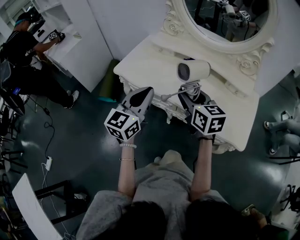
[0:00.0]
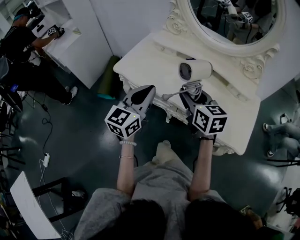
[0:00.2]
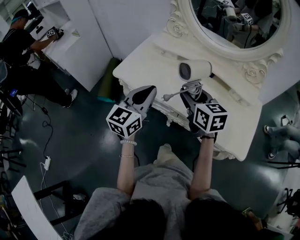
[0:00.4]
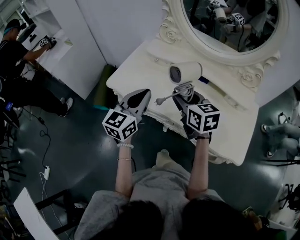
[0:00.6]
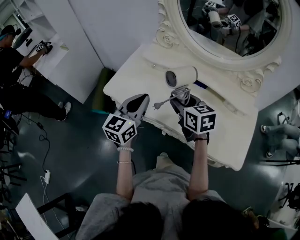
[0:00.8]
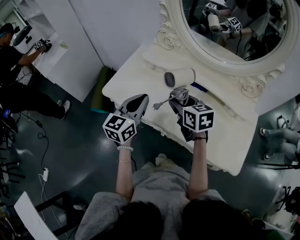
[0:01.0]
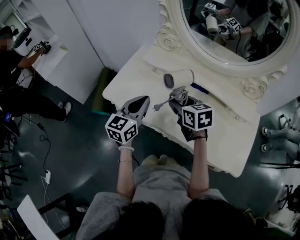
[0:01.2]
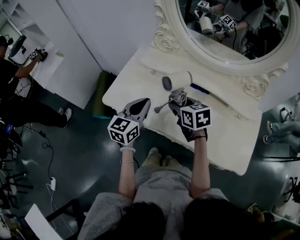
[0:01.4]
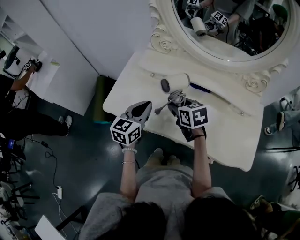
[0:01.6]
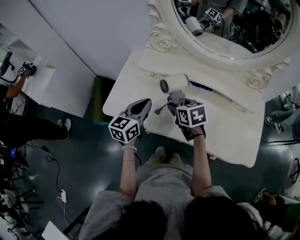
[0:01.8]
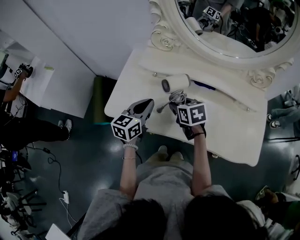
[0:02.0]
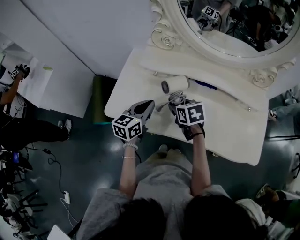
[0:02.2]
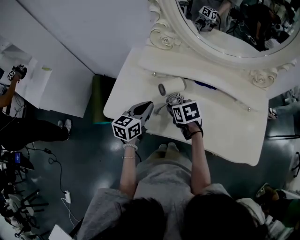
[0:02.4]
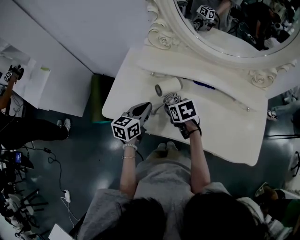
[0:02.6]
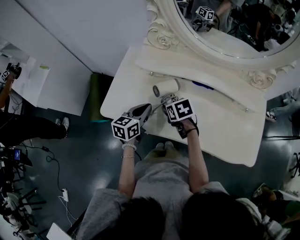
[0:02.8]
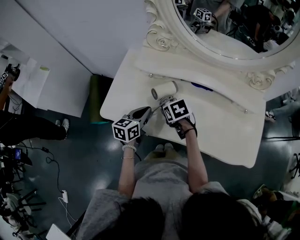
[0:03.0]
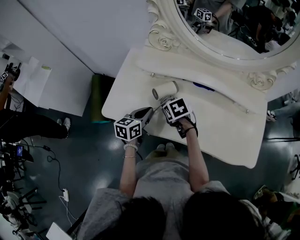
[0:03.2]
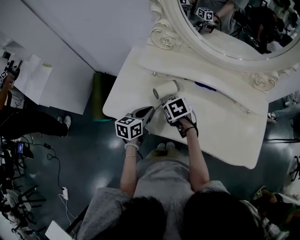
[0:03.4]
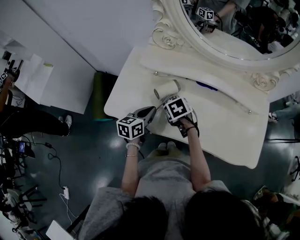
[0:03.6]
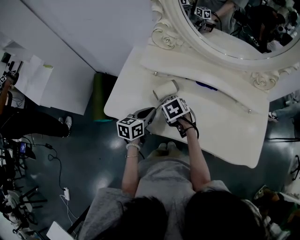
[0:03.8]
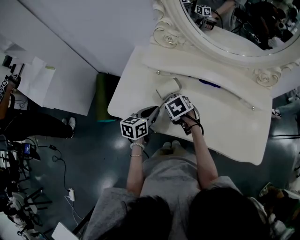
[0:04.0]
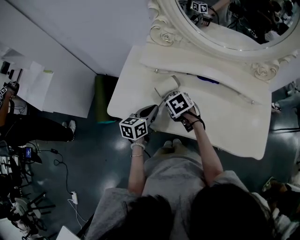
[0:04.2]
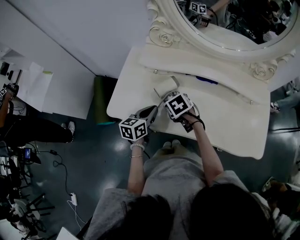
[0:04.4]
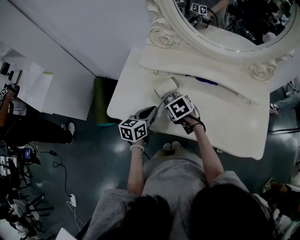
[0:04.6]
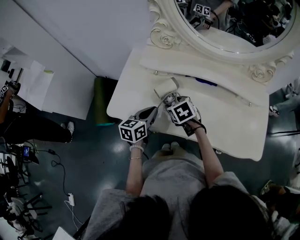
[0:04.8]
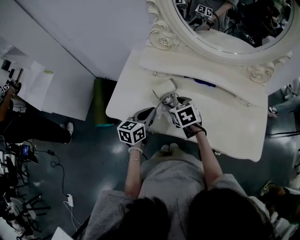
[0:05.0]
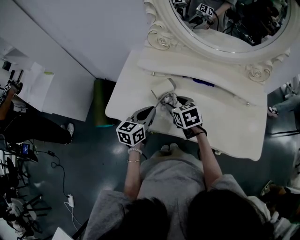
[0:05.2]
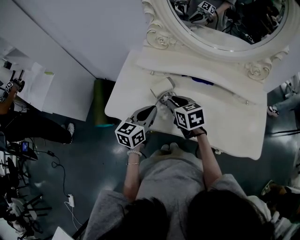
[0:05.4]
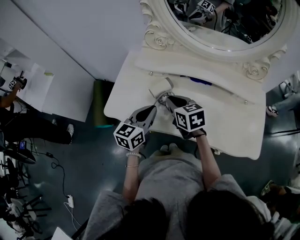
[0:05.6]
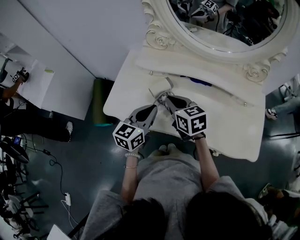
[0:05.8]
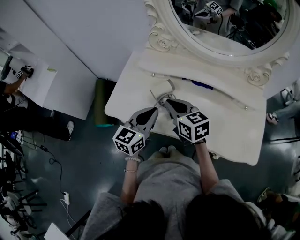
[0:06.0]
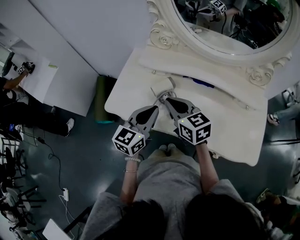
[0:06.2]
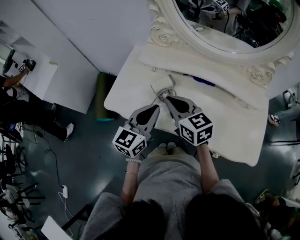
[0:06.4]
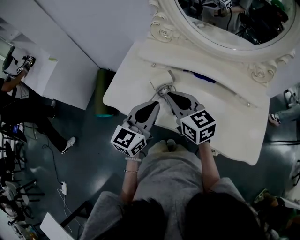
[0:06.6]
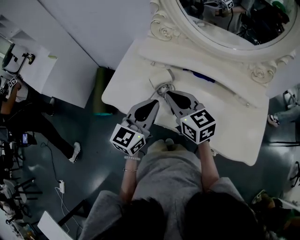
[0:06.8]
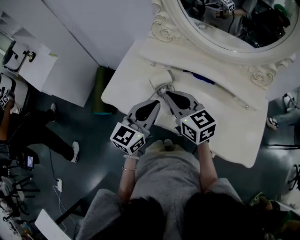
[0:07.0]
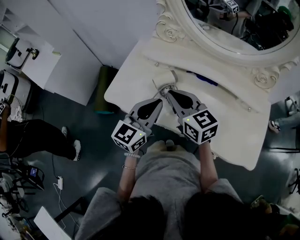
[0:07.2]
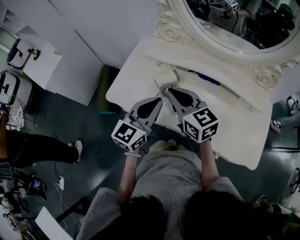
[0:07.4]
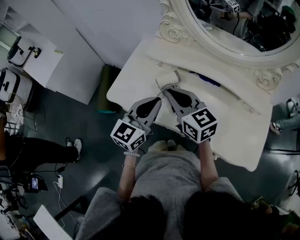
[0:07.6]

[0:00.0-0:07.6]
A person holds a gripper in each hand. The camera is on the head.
0:00.0 to 0:01.6: Both grippers move forward and downward, about 25 cm. The right gripper turns by about 20 degrees.
0:01.6 to 0:03.0: The two grippers go roughly 10 cm downward. The right gripper changes its angle by about 20 degrees.
0:03.0 to 0:04.6: The grippers move only a little.
0:04.6 to 0:06.0: The grippers both shift upward by roughly 15 cm. The left gripper rotates some 20 degrees, while the right gripper tips its fingers upward by some 40 degrees, and closes up.
0:06.0 to 0:07.6: The grippers move only a little.

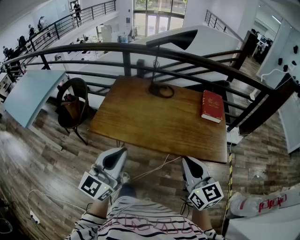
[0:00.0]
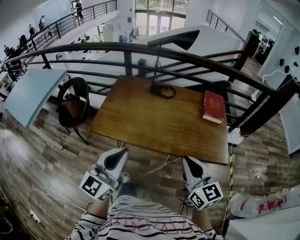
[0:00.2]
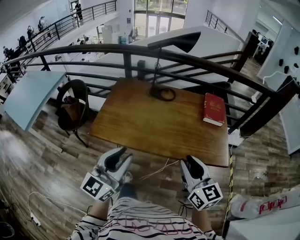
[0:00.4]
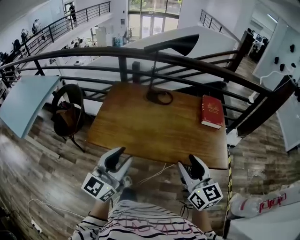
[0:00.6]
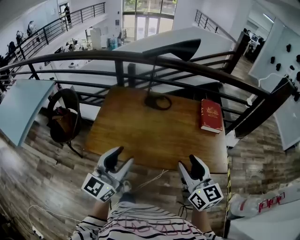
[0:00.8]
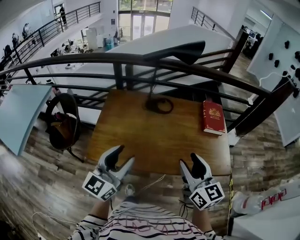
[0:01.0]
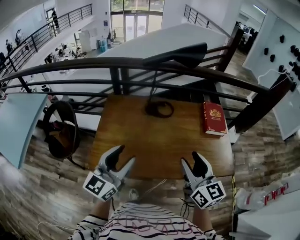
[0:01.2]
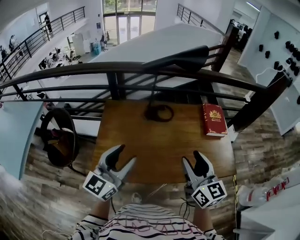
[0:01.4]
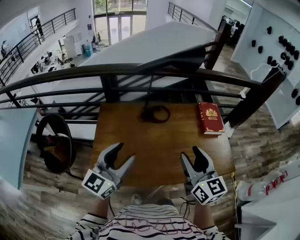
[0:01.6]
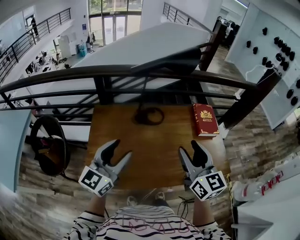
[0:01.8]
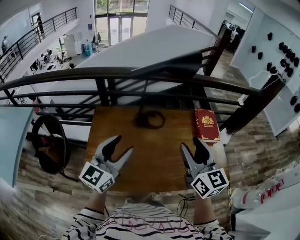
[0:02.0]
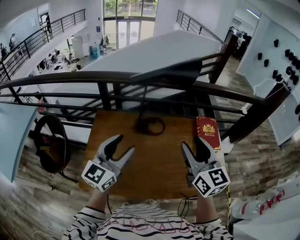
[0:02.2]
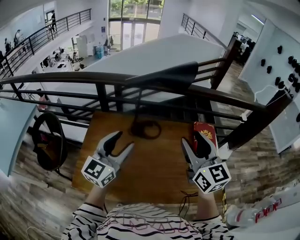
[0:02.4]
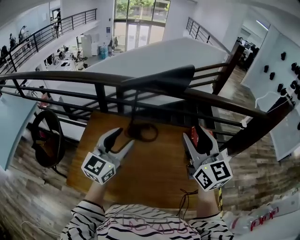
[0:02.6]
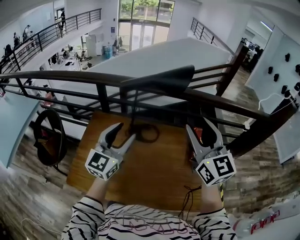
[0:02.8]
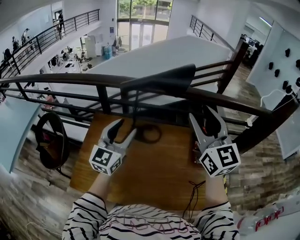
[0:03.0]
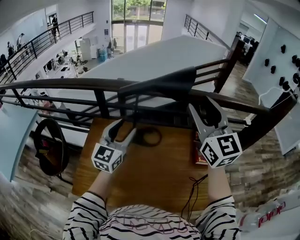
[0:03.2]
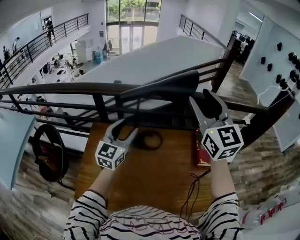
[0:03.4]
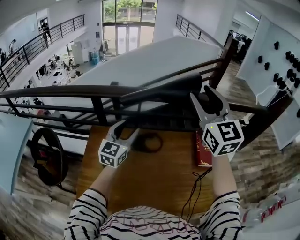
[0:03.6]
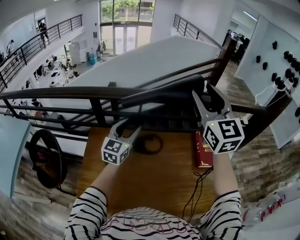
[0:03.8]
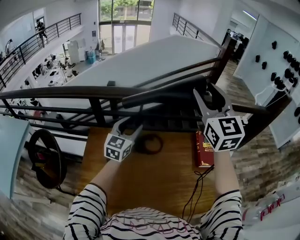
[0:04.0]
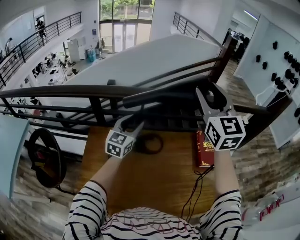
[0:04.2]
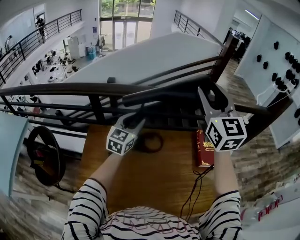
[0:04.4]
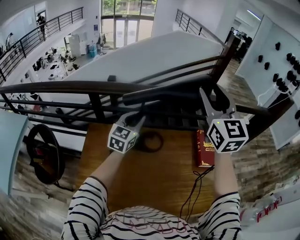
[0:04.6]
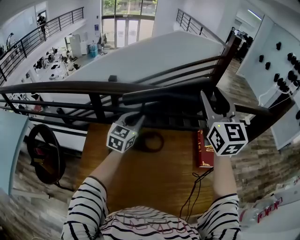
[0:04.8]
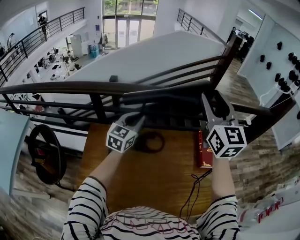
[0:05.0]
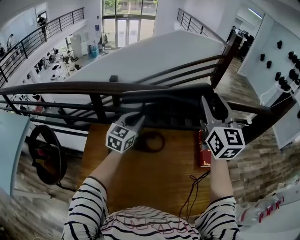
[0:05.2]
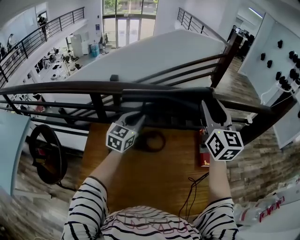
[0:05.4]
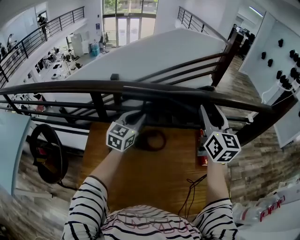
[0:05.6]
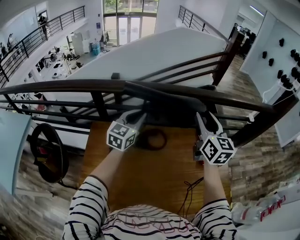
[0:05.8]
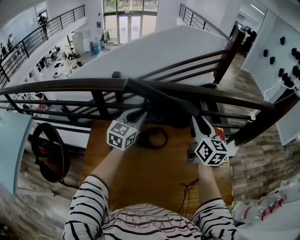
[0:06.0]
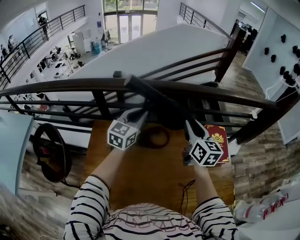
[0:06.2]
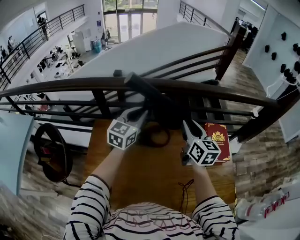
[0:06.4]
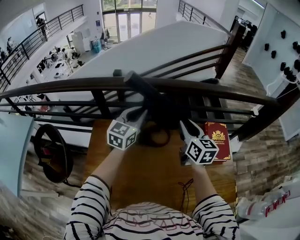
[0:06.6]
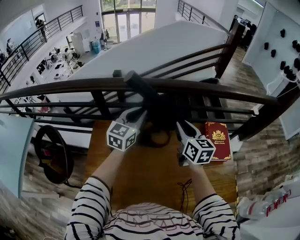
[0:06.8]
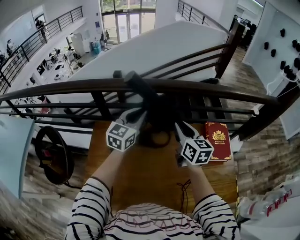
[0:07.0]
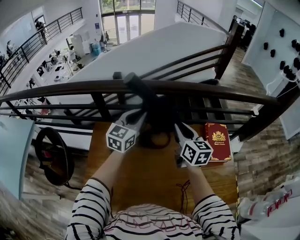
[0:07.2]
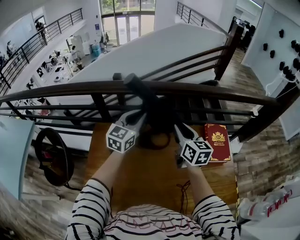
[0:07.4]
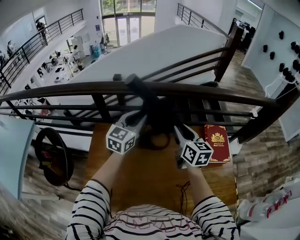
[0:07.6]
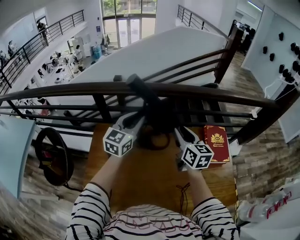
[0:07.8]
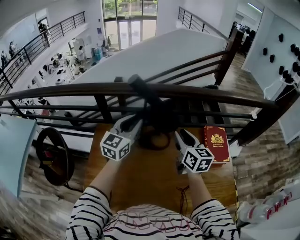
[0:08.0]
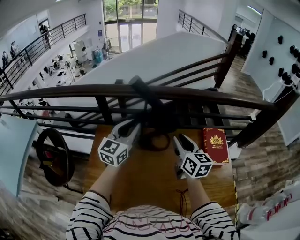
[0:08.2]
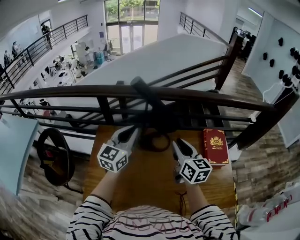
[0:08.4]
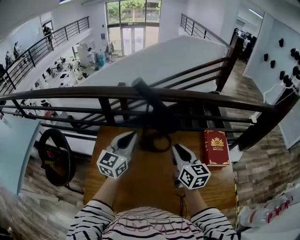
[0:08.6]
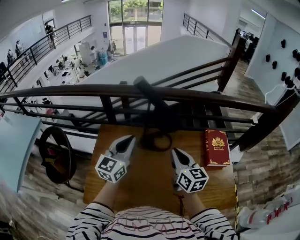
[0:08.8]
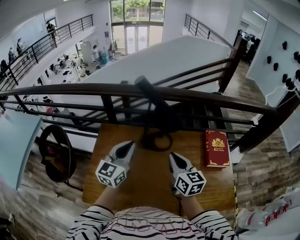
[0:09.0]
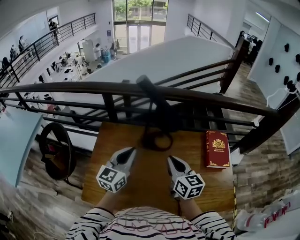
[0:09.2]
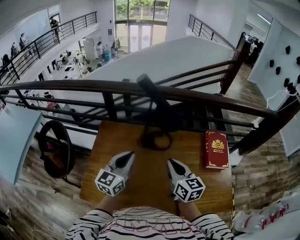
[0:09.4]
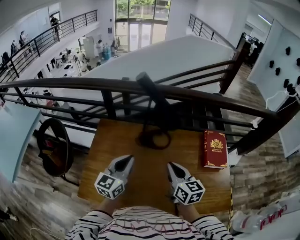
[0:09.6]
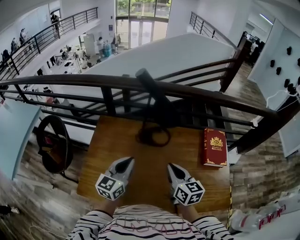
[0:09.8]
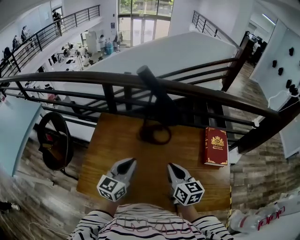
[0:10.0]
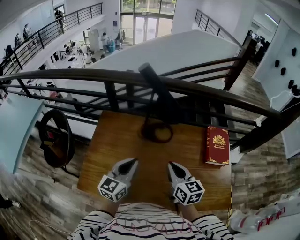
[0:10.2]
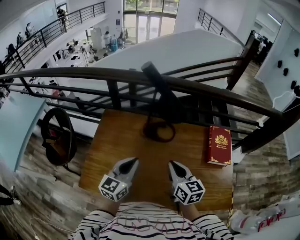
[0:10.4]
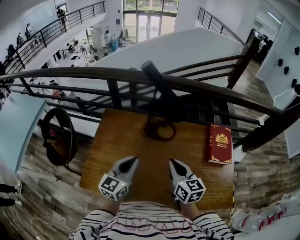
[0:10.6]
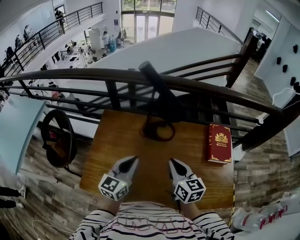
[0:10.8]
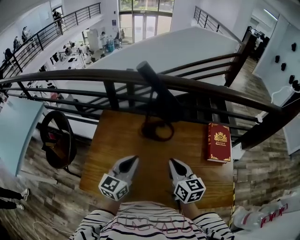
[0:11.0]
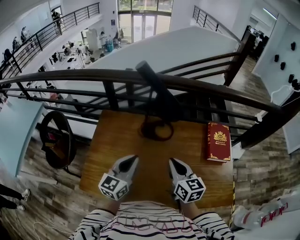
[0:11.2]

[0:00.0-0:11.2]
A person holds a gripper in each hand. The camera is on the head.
0:00.0 to 0:01.6: Both grippers move forward and to the left, approximately 35 cm. The right gripper opens its fingers, while the left gripper opens its fingers.
0:01.6 to 0:03.2: The left gripper travels forward and to the right by about 25 cm, while the right gripper moves forward and upward, some 30 cm, and rotates approximately 30 degrees.
0:03.2 to 0:04.8: Both grippers travel together forward, approximately 15 cm. The left gripper closes.
0:04.8 to 0:06.4: The right gripper is displaced downward by approximately 25 cm, and changes its angle by some 30 degrees.
0:06.4 to 0:08.0: The right gripper moves about 5 cm. Meanwhile the left gripper heads backward, covering approximately 5 cm.
0:08.0 to 0:09.6: The right gripper travels backward by roughly 15 cm, and closes; the left gripper goes some 20 cm backward and downward.
0:09.6 to 0:11.2: The grippers stay close to where they were, moving slightly.

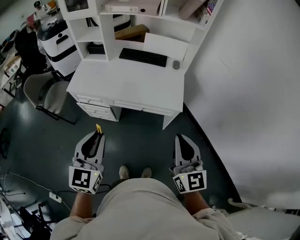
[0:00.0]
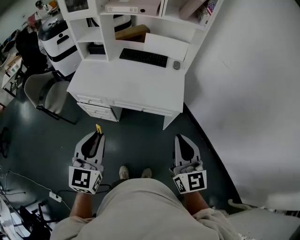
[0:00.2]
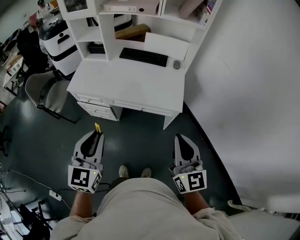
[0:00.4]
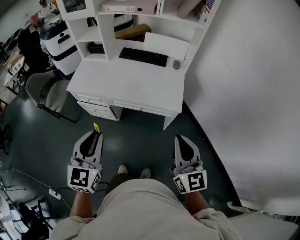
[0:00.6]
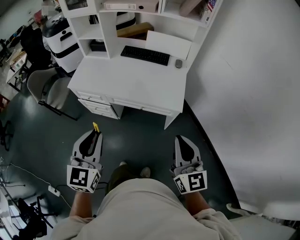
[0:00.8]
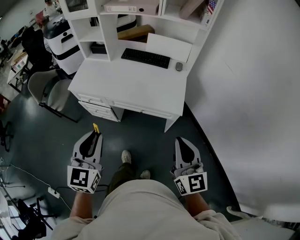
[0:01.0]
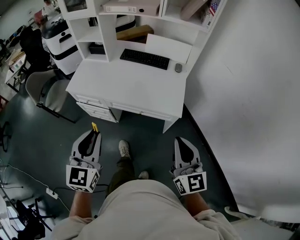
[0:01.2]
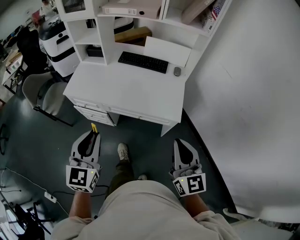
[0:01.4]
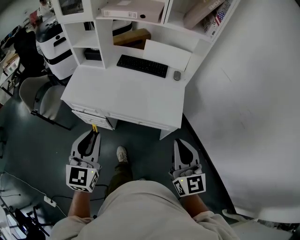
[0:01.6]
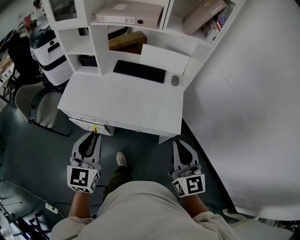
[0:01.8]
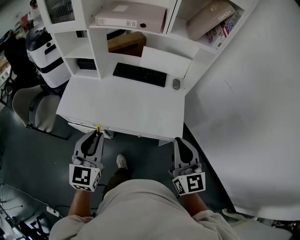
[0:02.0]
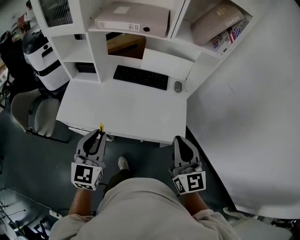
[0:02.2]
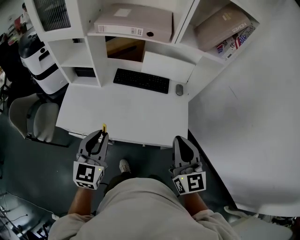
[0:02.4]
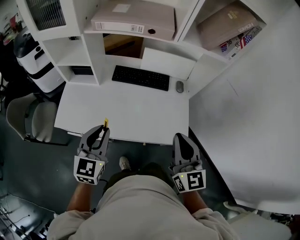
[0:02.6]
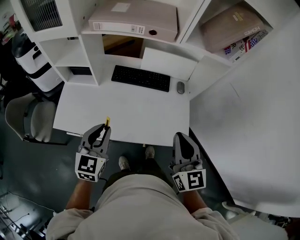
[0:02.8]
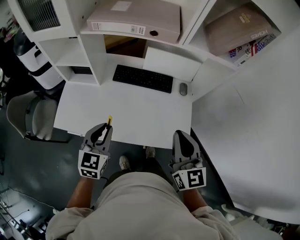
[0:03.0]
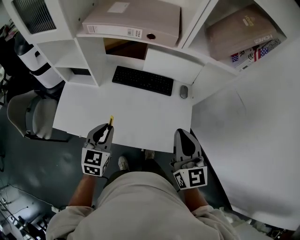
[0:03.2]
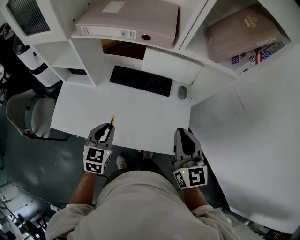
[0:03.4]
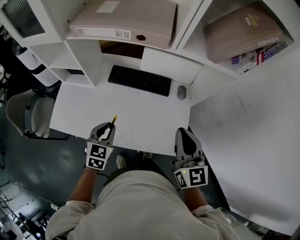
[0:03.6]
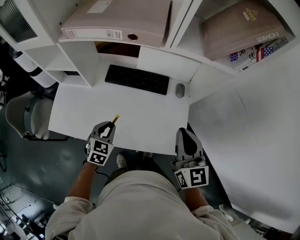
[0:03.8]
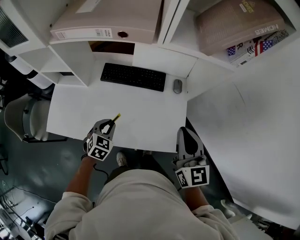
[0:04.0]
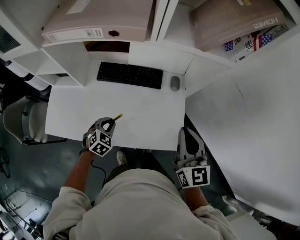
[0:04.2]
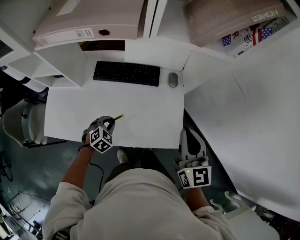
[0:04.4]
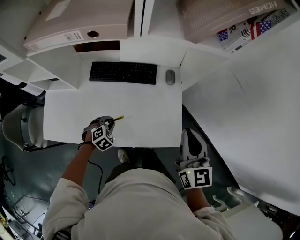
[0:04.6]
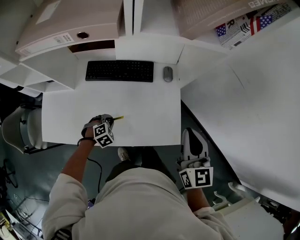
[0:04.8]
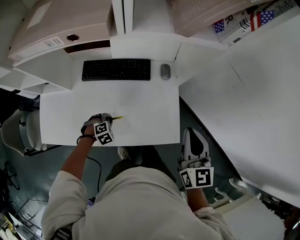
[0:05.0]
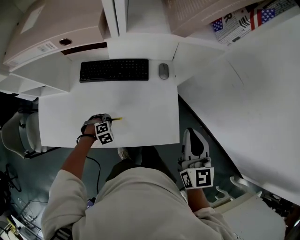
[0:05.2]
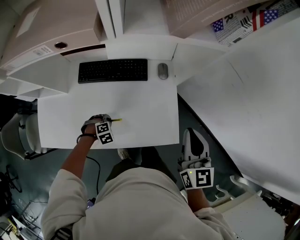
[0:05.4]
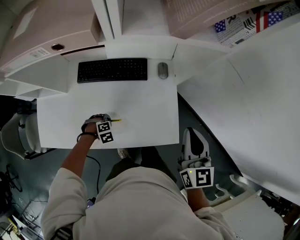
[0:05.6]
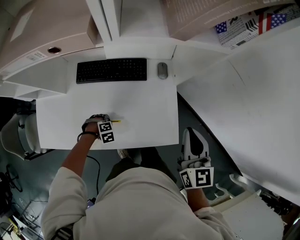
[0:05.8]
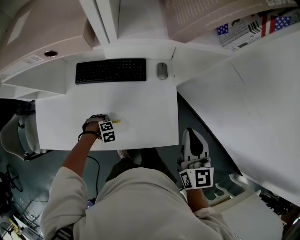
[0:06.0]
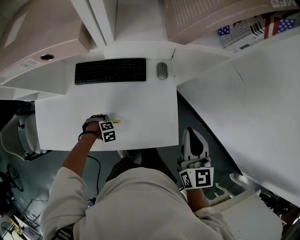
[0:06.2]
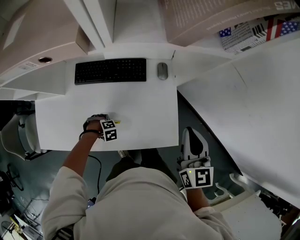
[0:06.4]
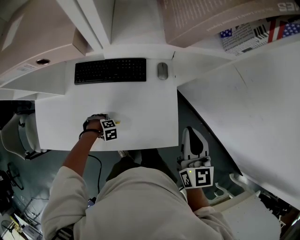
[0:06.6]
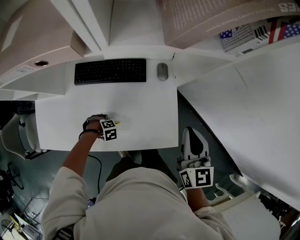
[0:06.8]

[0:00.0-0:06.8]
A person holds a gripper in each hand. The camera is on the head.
0:00.0 to 0:01.4: The grippers both shift forward by some 5 cm.
0:01.4 to 0:02.8: Both grippers move forward, approximately 30 cm.
0:02.8 to 0:04.0: The left gripper shifts about 20 cm downward, forward and to the right, and rotates roughly 30 degrees. Meanwhile the right gripper is displaced forward and to the right by about 15 cm.
0:04.0 to 0:05.4: The right gripper shifts by about 10 cm. The left gripper goes roughly 20 cm downward, and points its fingers approximately 30 degrees further downward.
0:05.4 to 0:06.8: The grippers make only small movements.
